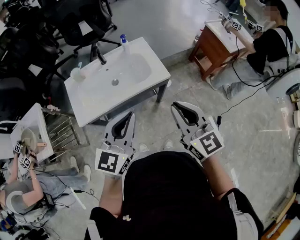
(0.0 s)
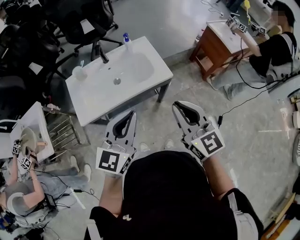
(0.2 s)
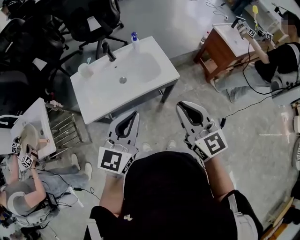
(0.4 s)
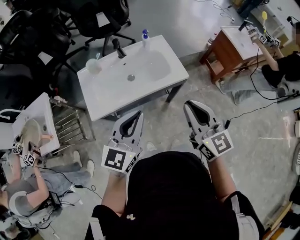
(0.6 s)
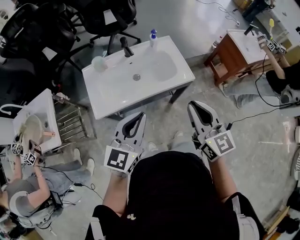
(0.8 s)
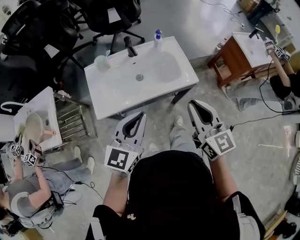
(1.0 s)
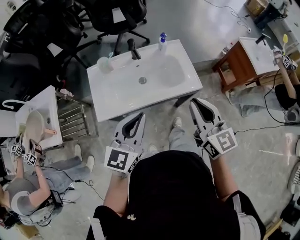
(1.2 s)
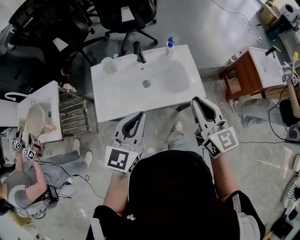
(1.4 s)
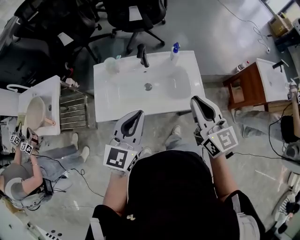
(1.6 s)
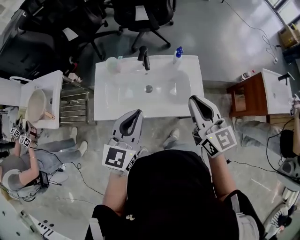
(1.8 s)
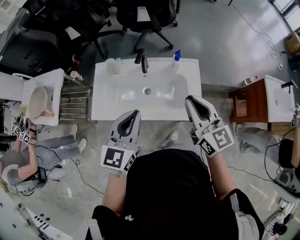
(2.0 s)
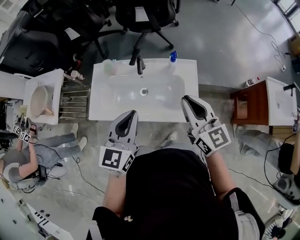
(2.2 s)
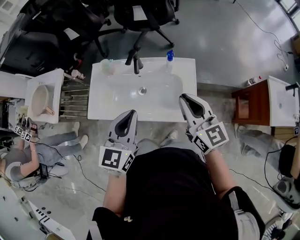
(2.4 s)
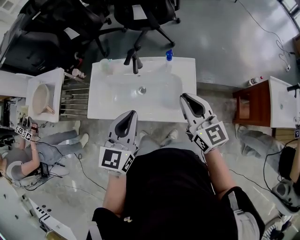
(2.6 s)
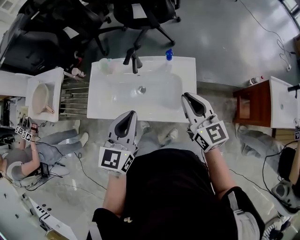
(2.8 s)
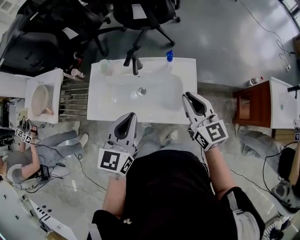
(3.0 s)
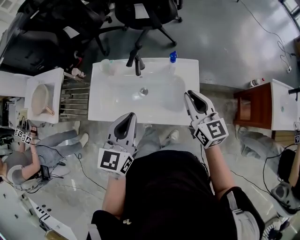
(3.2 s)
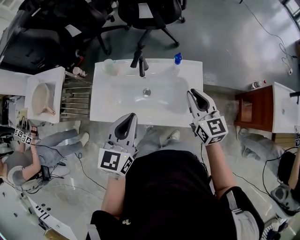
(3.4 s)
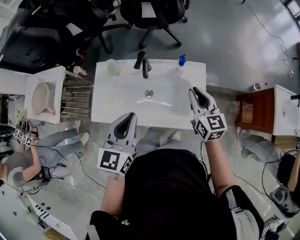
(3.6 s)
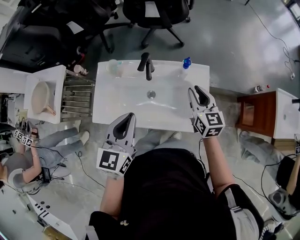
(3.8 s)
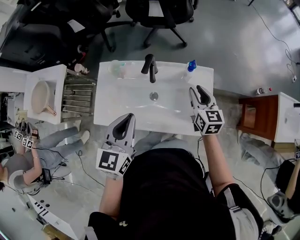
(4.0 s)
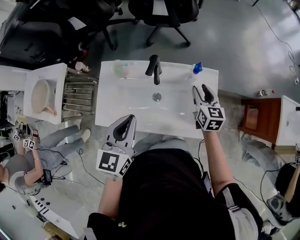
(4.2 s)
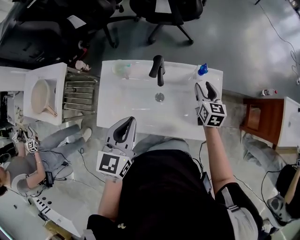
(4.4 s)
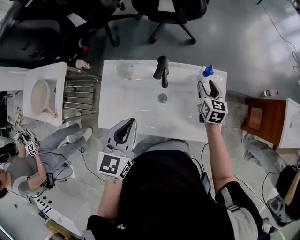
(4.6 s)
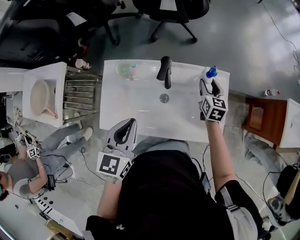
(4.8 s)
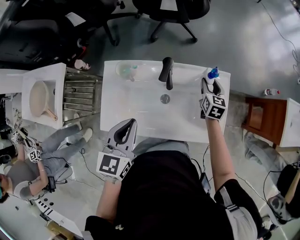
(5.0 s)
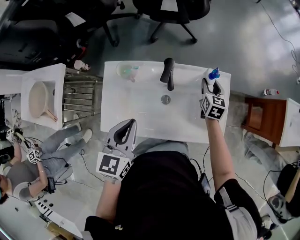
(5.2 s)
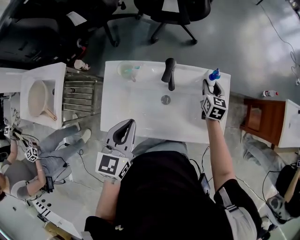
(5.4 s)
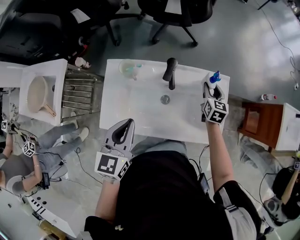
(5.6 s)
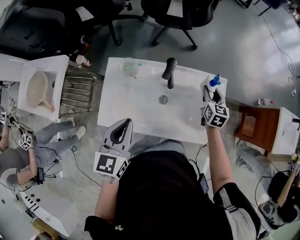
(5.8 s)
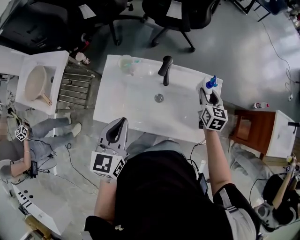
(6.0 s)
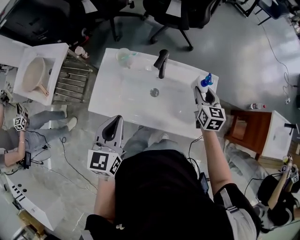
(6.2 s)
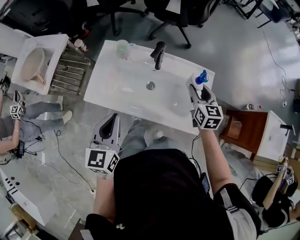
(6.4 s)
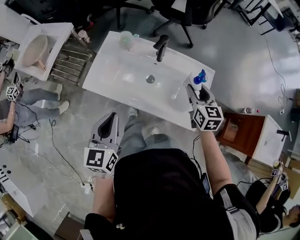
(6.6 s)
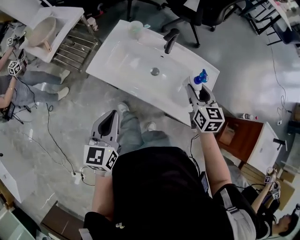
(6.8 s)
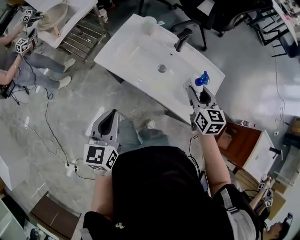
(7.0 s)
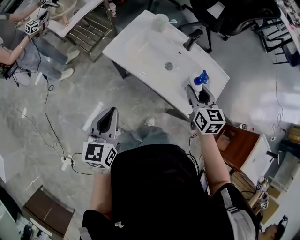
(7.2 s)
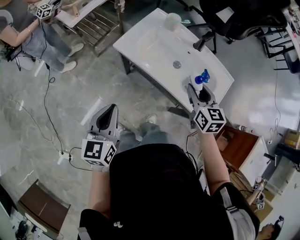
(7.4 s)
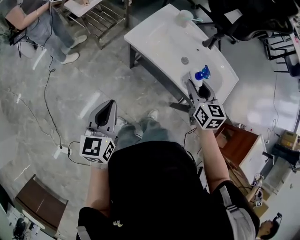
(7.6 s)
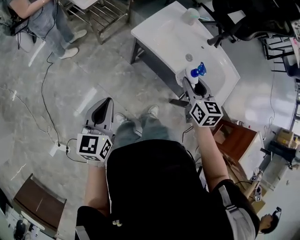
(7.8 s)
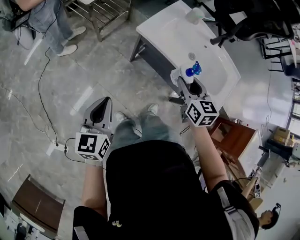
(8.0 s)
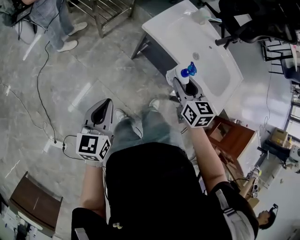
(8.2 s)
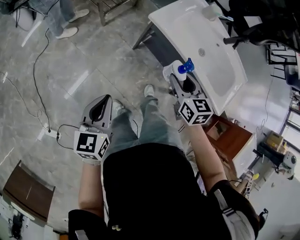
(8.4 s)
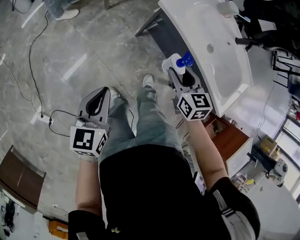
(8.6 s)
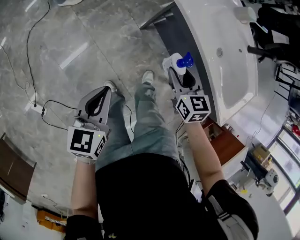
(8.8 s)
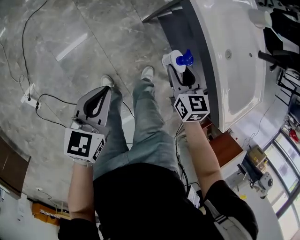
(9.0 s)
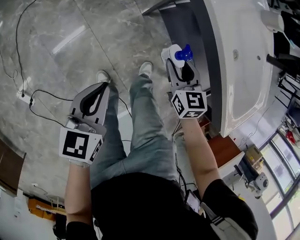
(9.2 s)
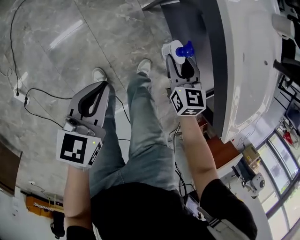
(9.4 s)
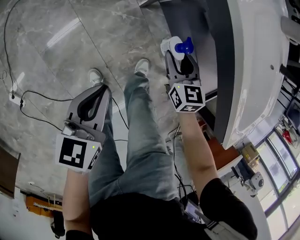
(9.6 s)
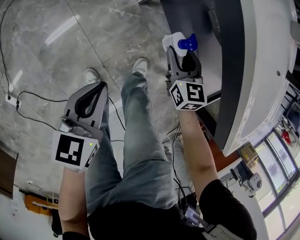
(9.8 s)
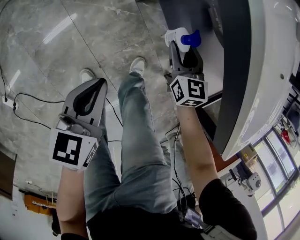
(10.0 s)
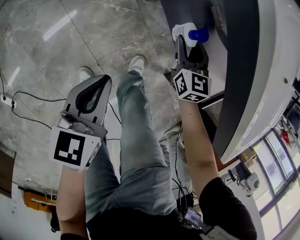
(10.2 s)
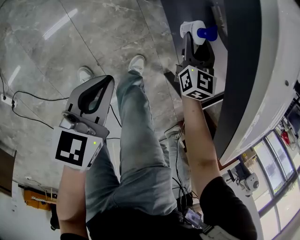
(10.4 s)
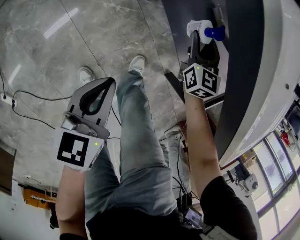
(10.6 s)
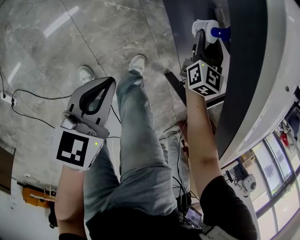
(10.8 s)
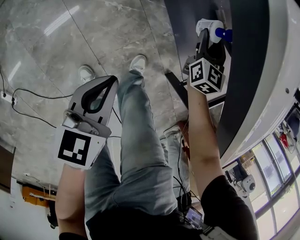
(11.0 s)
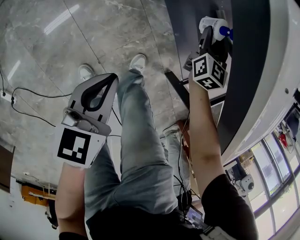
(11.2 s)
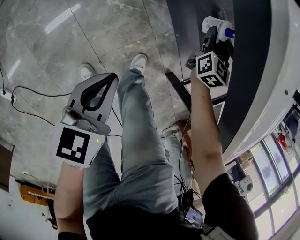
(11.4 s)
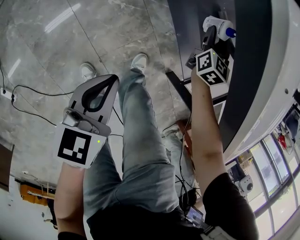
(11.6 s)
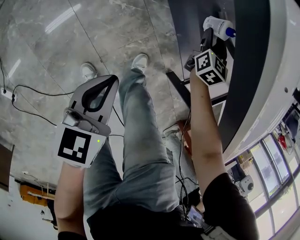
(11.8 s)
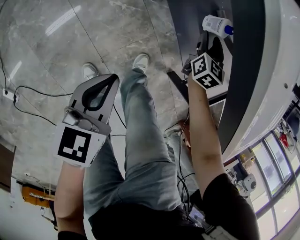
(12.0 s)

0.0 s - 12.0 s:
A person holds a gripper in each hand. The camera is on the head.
0.0 s - 1.6 s: The grippers both shift forward and to the left by about 20 cm.
1.6 s - 3.0 s: The left gripper moves to the right, roughly 10 cm, while the right gripper shifts roughly 15 cm forward, to the right and downward.
3.0 s - 4.4 s: The left gripper moves to the left, forward and downward, approximately 15 cm; the right gripper heads downward and forward, covering some 25 cm, rotates approximately 30 degrees, and opens its fingers.
4.4 s - 6.0 s: The left gripper changes place by approximately 5 cm.
6.0 s - 7.6 s: The left gripper shifts by approximately 35 cm, and turns by some 30 degrees. Meanwhile the right gripper ends up some 35 cm from where it was, and changes its angle by approximately 40 degrees.
7.6 s - 9.0 s: The right gripper travels downward and to the left by roughly 30 cm, and changes its angle by about 20 degrees, while the left gripper heads downward, covering about 20 cm.
9.0 s - 10.4 s: The left gripper travels downward and to the right by some 20 cm. Meanwhile the right gripper heads downward, forward and to the right, covering some 25 cm.
10.4 s - 12.0 s: The right gripper moves about 5 cm.

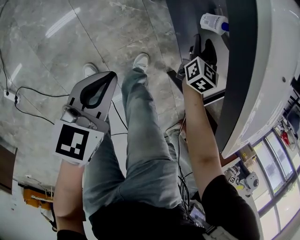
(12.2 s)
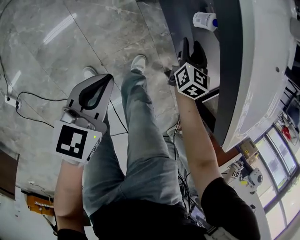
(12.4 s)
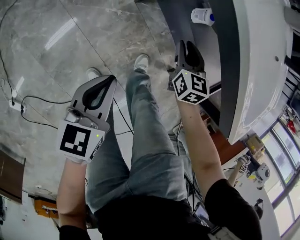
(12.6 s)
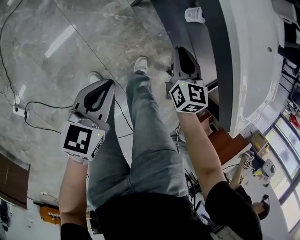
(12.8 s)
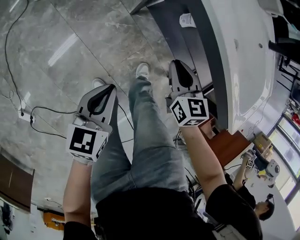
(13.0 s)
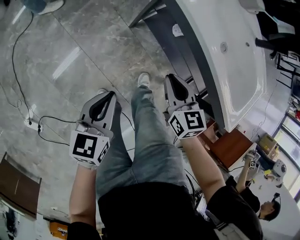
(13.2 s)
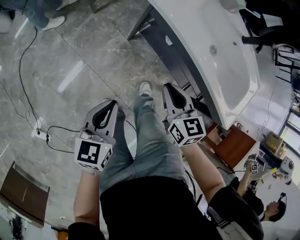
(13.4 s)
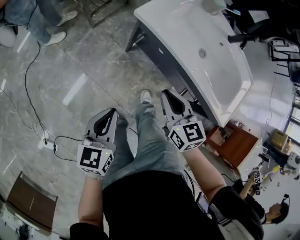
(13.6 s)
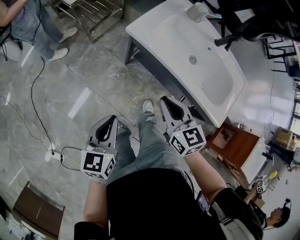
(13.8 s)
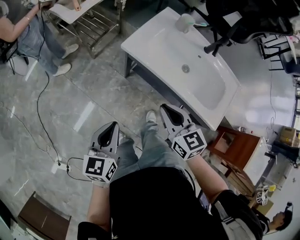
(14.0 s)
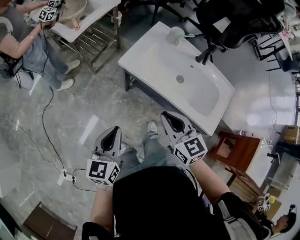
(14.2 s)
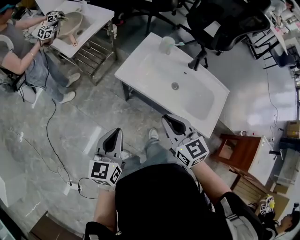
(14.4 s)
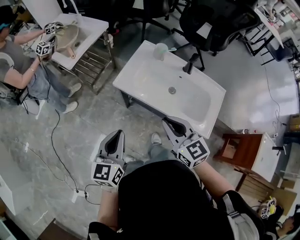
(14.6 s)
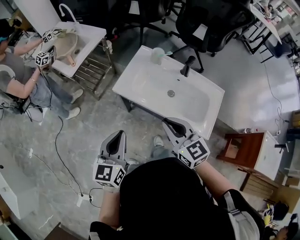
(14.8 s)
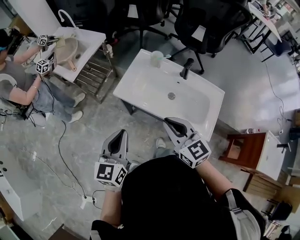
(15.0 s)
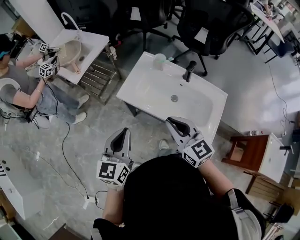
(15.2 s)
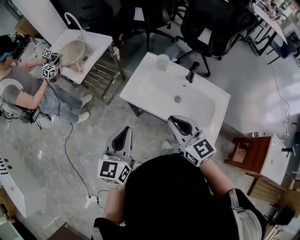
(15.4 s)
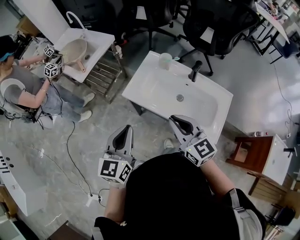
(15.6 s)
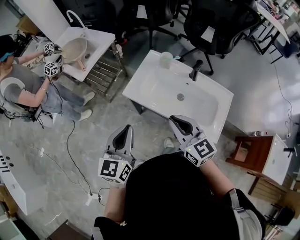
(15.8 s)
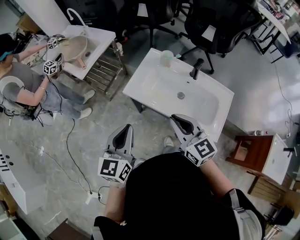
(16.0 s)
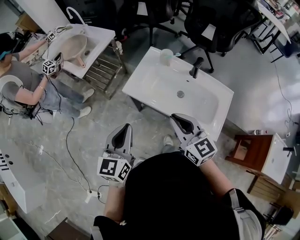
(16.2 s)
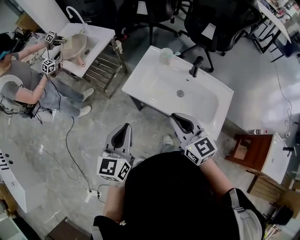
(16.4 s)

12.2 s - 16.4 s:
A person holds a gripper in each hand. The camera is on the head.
12.2 s - 13.6 s: The left gripper is displaced upward by approximately 20 cm, while the right gripper goes roughly 35 cm upward and backward, changes its angle by some 20 degrees, and closes its fingers.
13.6 s - 15.0 s: The two grippers go roughly 25 cm upward. The left gripper rotates roughly 20 degrees.
15.0 s - 16.4 s: The grippers move only a little.

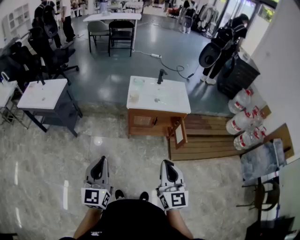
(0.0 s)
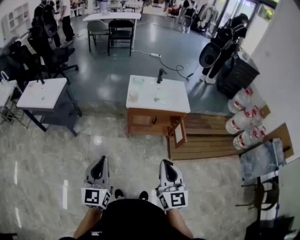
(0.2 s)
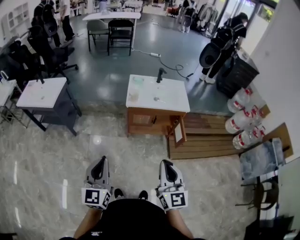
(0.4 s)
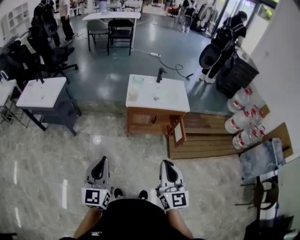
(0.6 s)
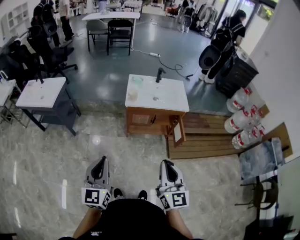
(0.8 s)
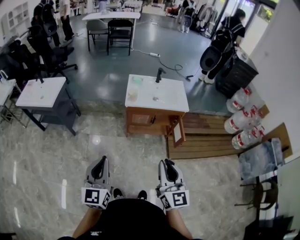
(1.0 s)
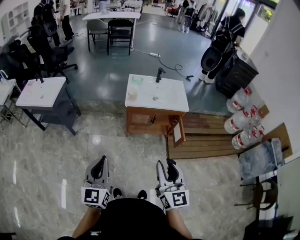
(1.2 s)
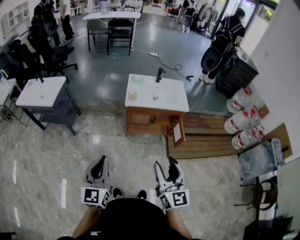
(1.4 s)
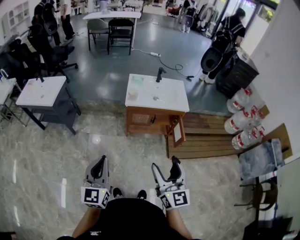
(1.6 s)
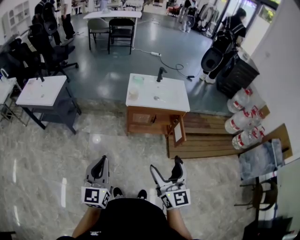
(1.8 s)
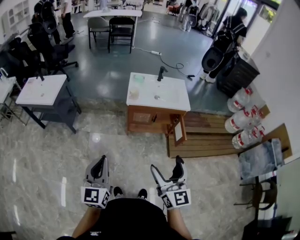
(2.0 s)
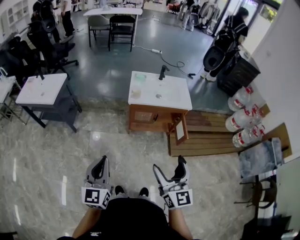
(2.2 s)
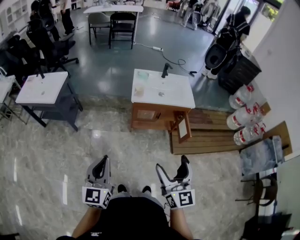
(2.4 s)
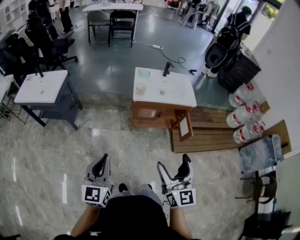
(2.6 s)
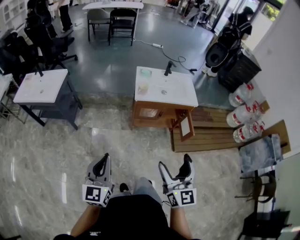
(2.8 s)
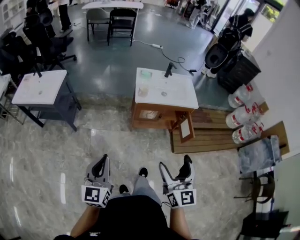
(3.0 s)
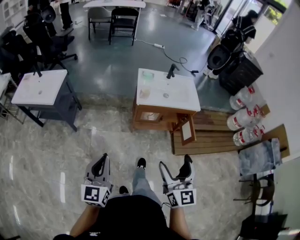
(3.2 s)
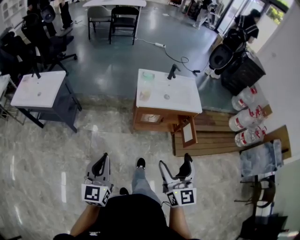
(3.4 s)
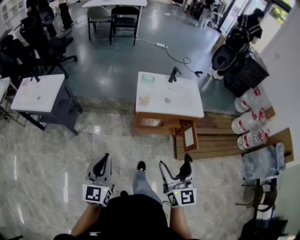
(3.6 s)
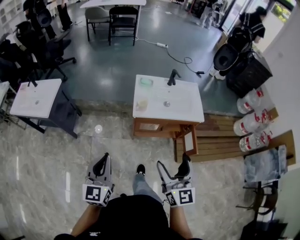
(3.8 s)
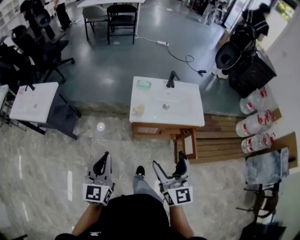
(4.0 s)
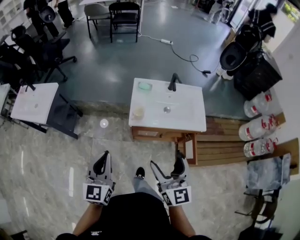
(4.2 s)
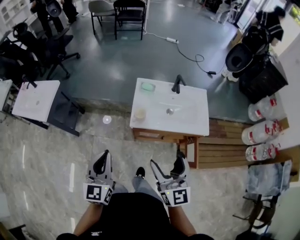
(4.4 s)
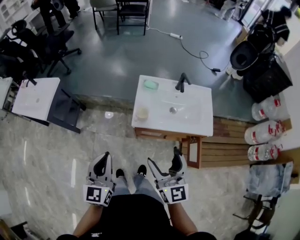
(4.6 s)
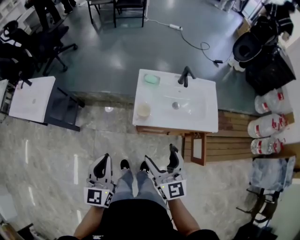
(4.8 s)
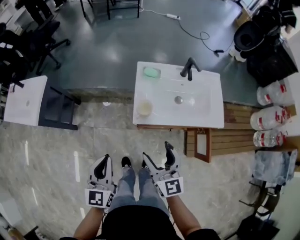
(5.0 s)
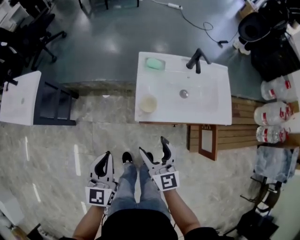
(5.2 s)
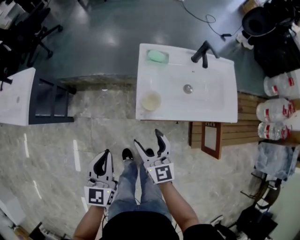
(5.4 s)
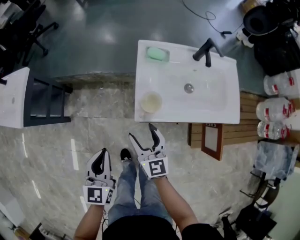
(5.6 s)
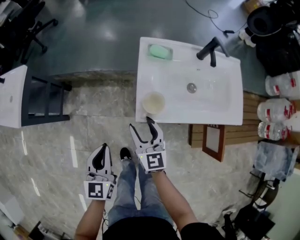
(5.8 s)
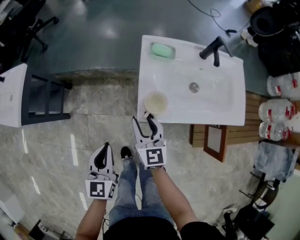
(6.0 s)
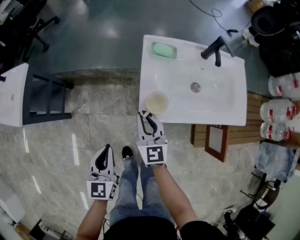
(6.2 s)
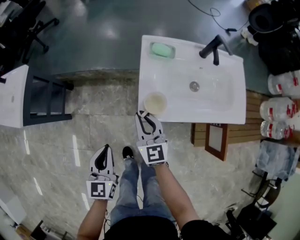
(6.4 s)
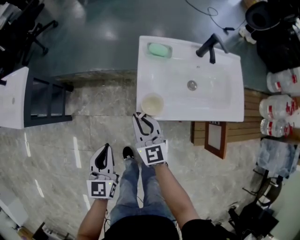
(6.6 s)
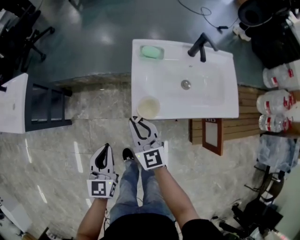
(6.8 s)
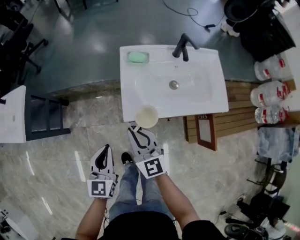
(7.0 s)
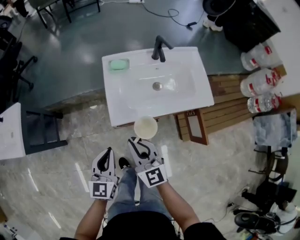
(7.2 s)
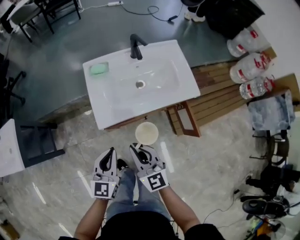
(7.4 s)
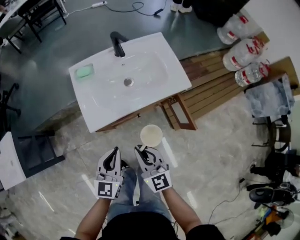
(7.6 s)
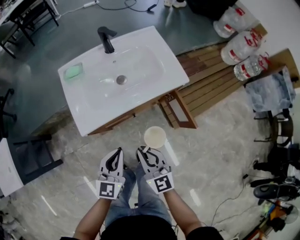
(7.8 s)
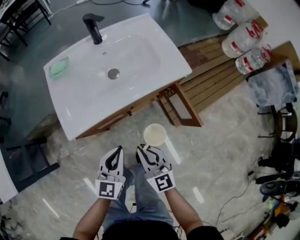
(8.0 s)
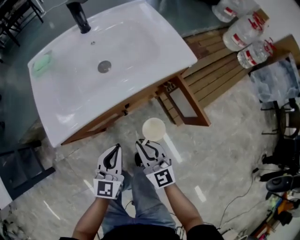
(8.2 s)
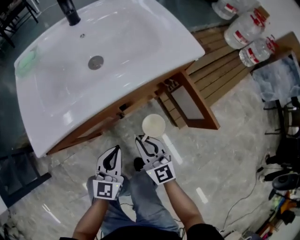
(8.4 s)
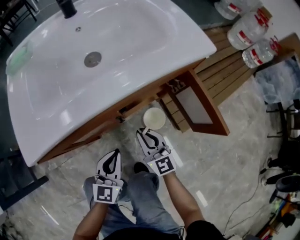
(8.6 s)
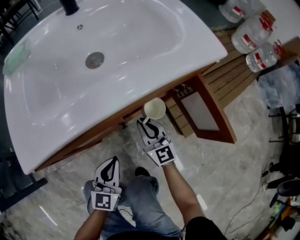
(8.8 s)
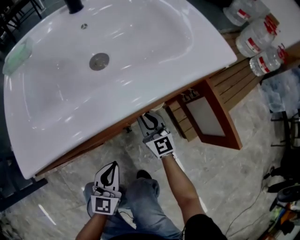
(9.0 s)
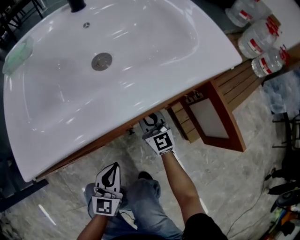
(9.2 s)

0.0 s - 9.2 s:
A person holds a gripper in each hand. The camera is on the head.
0.0 s - 1.6 s: The right gripper opens its fingers.
1.6 s - 3.0 s: Both grippers move to the left, roughly 10 cm.
3.0 s - 4.6 s: Both grippers move forward, some 30 cm.
4.6 s - 6.2 s: The left gripper shifts some 30 cm downward and forward; the right gripper is displaced downward, forward and to the left by roughly 40 cm, and closes.
6.2 s - 7.6 s: The right gripper shifts by about 25 cm; the left gripper changes place by some 25 cm, and turns by about 30 degrees.
7.6 s - 9.2 s: The right gripper travels downward and forward by roughly 50 cm. Meanwhile the left gripper travels downward by about 40 cm.
